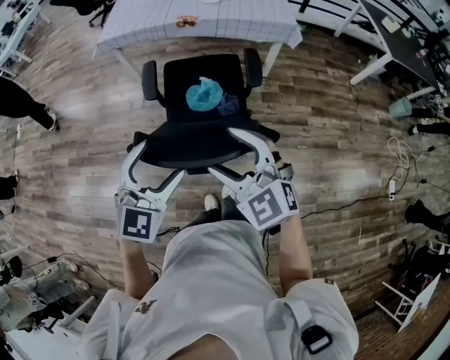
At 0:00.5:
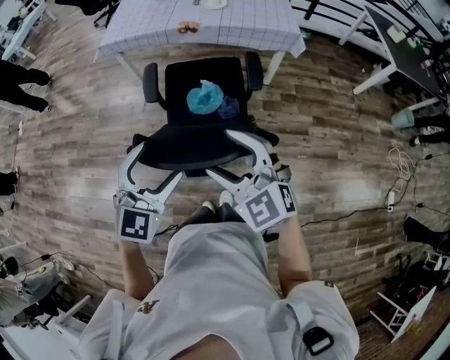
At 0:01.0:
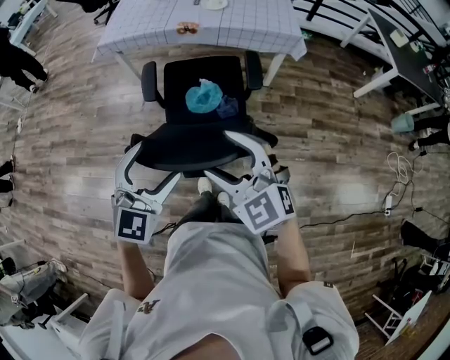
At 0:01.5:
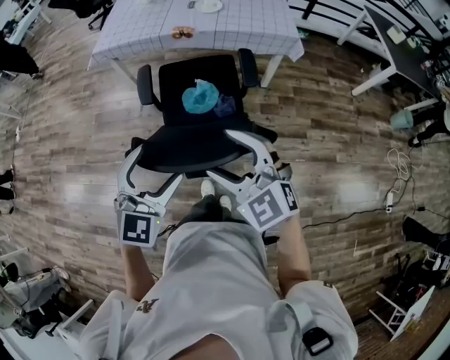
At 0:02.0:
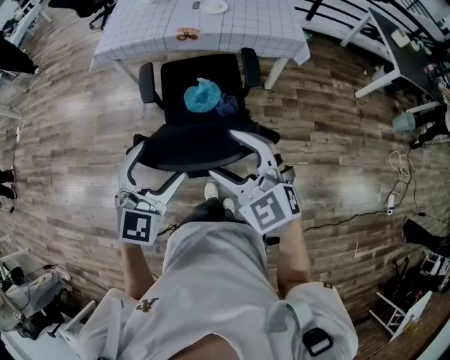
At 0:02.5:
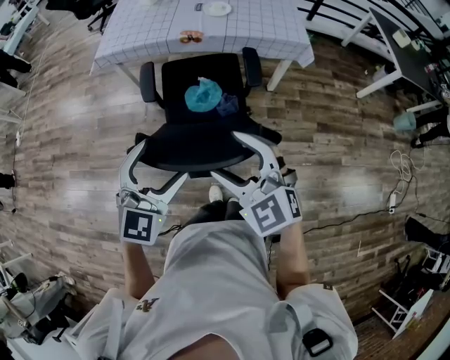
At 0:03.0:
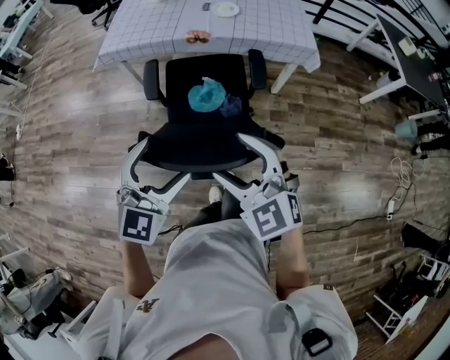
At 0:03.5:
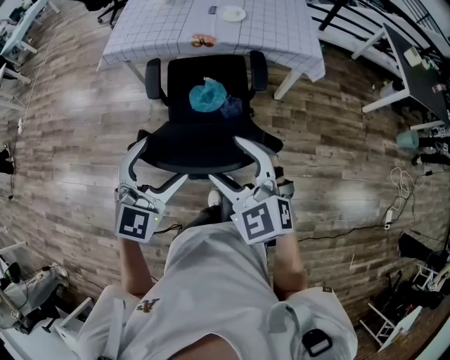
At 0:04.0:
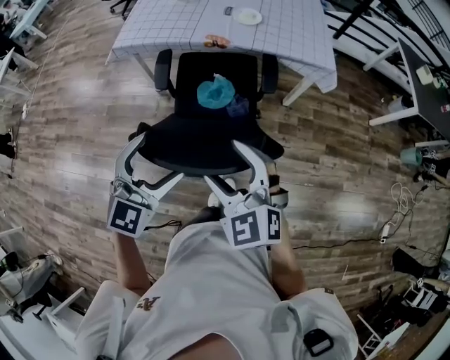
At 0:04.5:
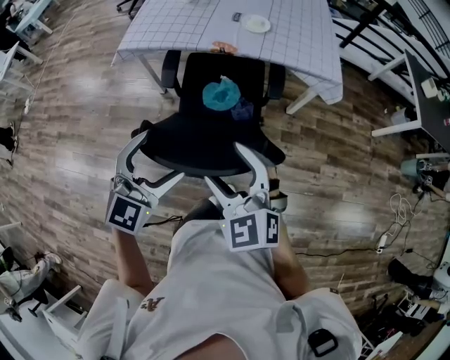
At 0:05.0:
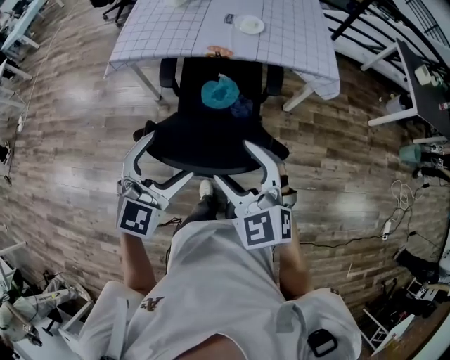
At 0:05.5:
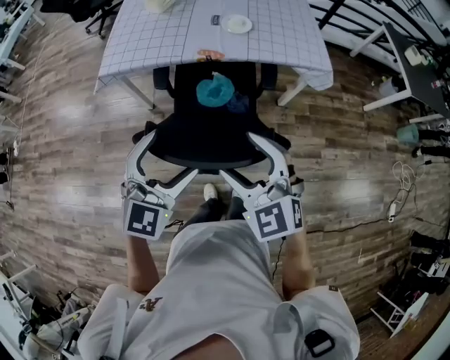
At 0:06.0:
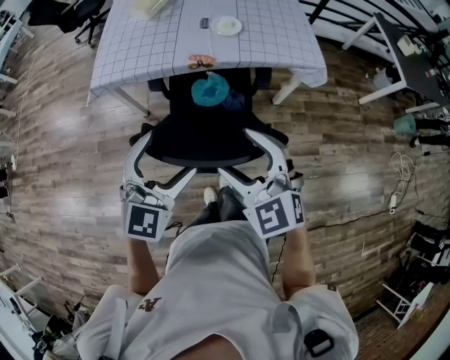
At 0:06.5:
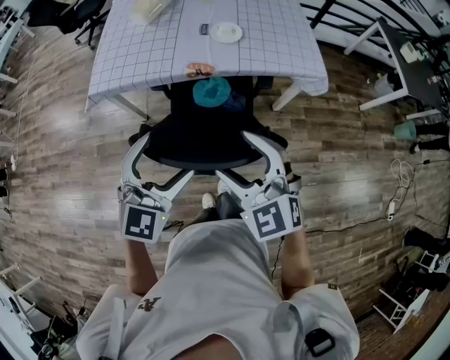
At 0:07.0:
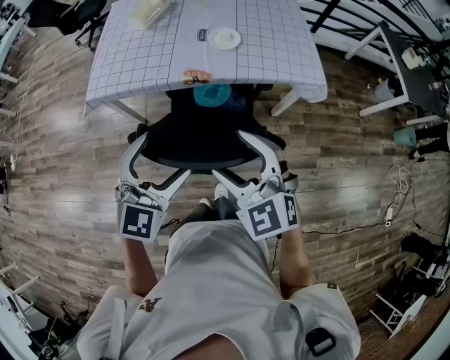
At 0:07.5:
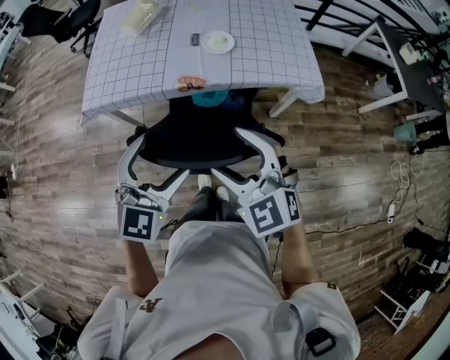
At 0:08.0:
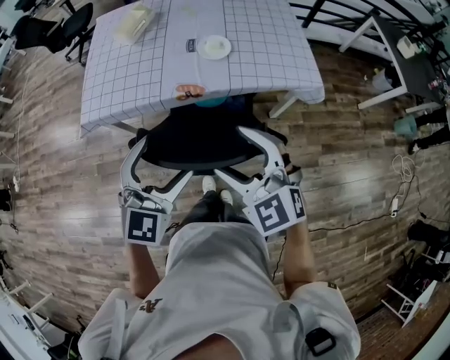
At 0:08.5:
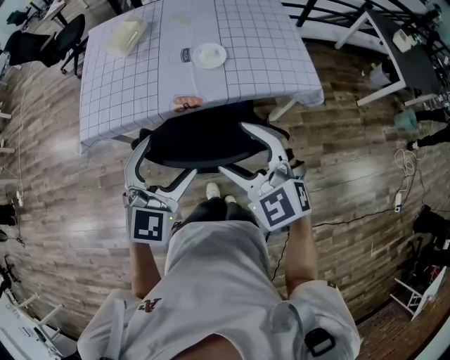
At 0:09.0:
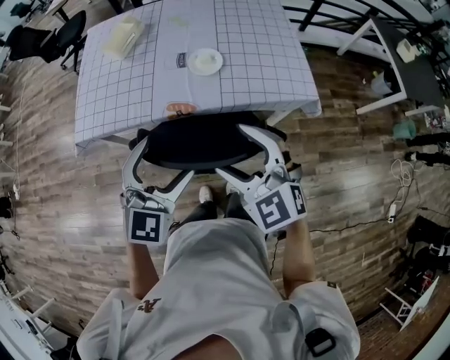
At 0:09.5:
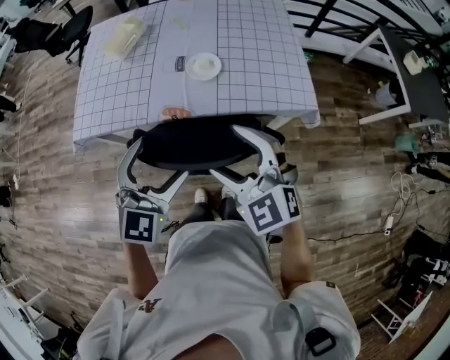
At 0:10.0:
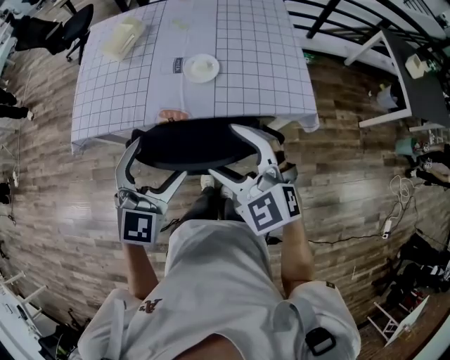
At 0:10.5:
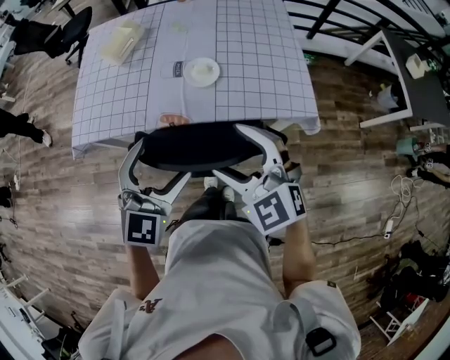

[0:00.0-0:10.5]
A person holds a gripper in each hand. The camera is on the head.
0:00.0 to 0:02.0: Both grippers move forward, approximately 10 cm.
0:02.0 to 0:04.0: The two grippers go some 10 cm forward and to the left.
0:04.0 to 0:06.5: Both grippers move forward, roughly 20 cm.
0:06.5 to 0:08.5: Both grippers travel together forward, roughly 15 cm.
0:08.5 to 0:10.5: The right gripper travels forward and to the right by some 10 cm, while the left gripper shifts some 10 cm to the right and forward.

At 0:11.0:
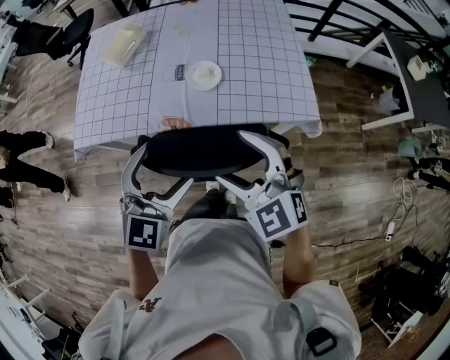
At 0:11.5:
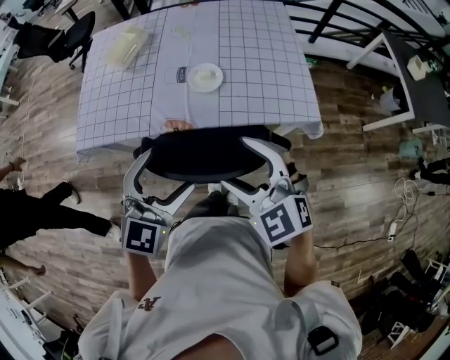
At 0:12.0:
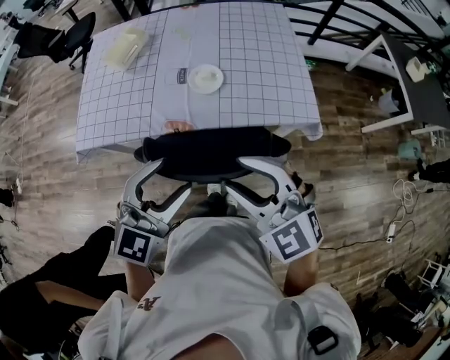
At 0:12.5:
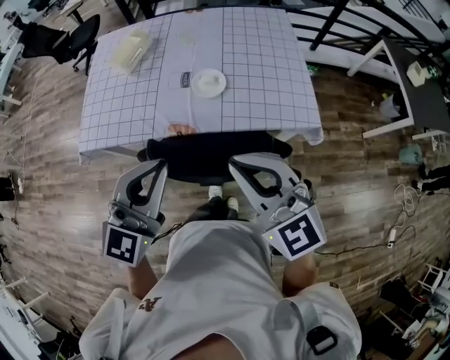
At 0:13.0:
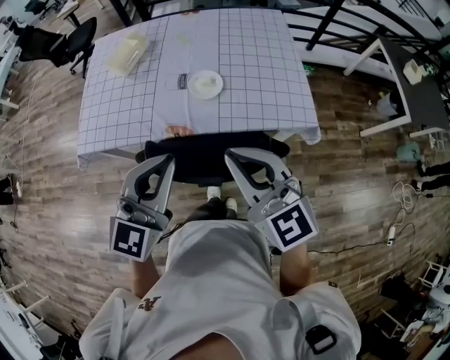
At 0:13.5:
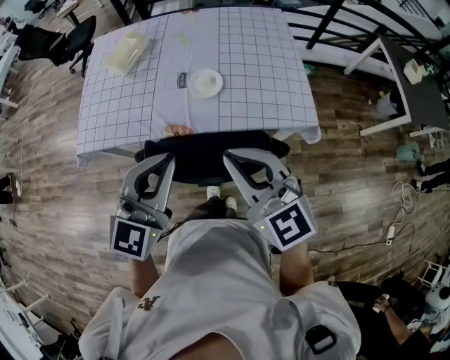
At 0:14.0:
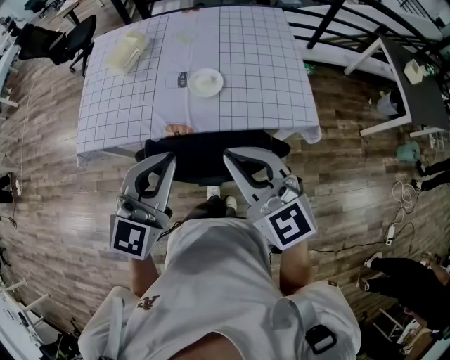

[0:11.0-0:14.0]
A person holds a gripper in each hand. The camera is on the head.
0:11.0 to 0:12.5: Both grippers travel together upward, some 10 cm. The right gripper closes up; the left gripper closes up.
0:12.5 to 0:14.0: There are only small adjustments of the grippers.

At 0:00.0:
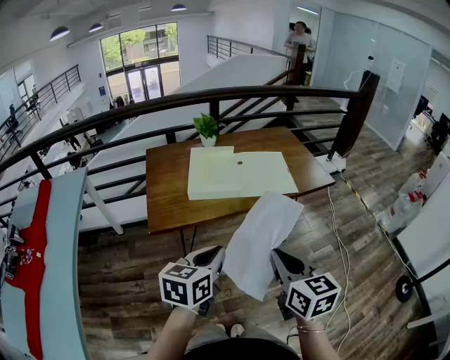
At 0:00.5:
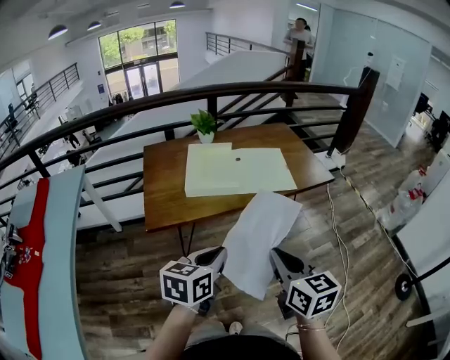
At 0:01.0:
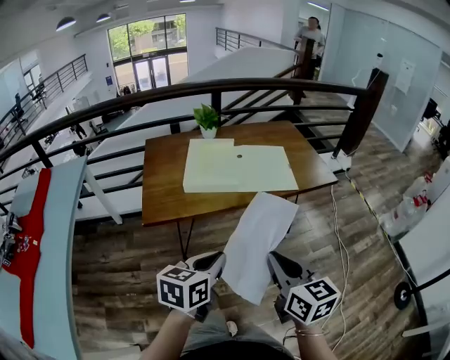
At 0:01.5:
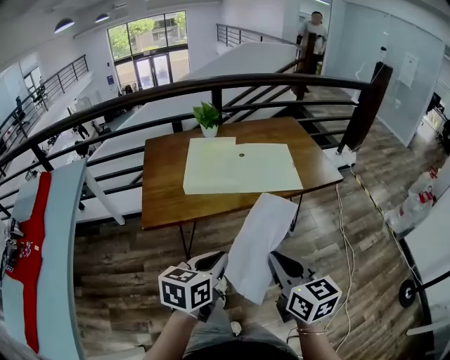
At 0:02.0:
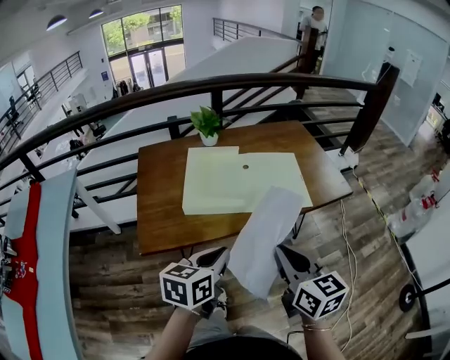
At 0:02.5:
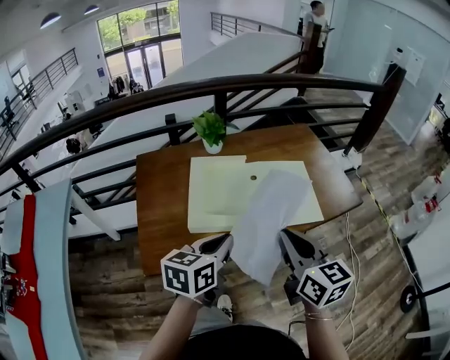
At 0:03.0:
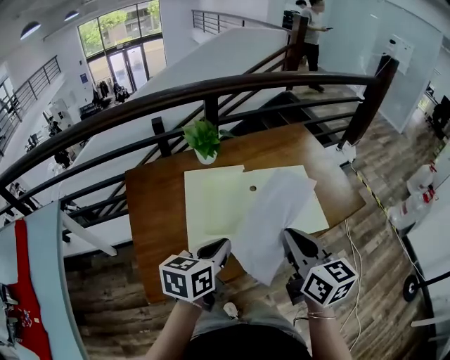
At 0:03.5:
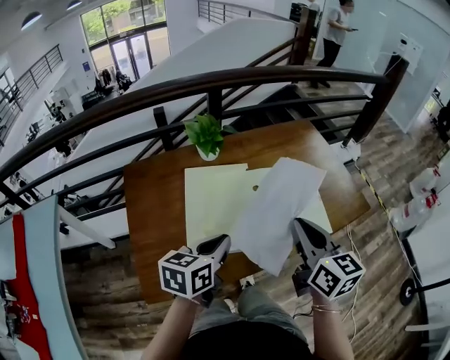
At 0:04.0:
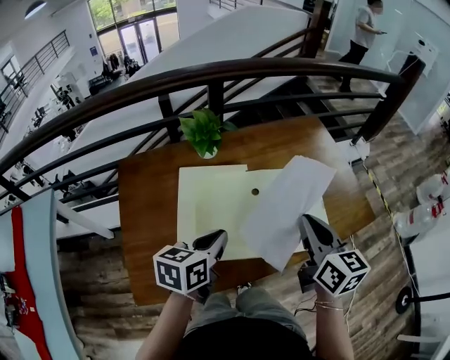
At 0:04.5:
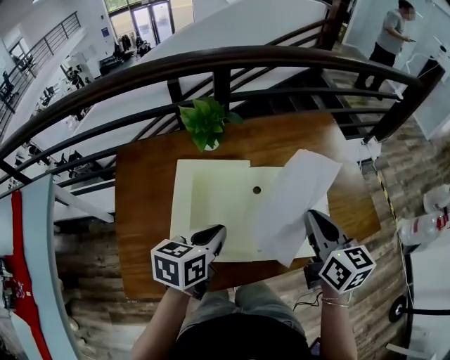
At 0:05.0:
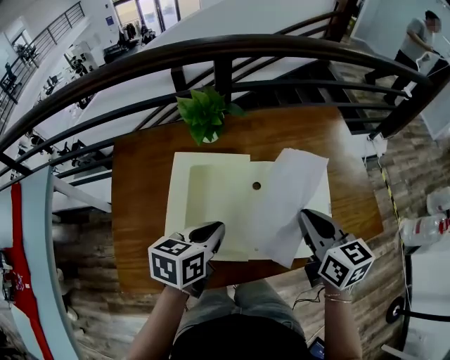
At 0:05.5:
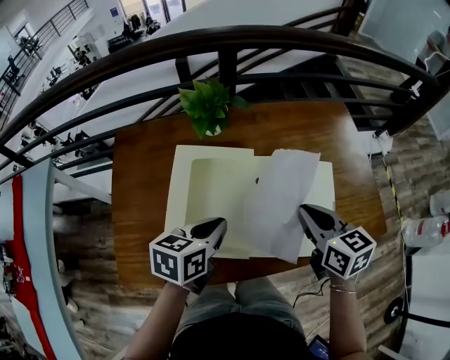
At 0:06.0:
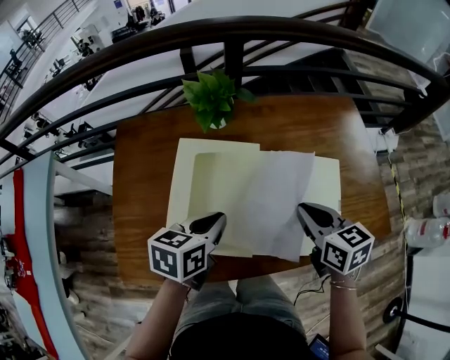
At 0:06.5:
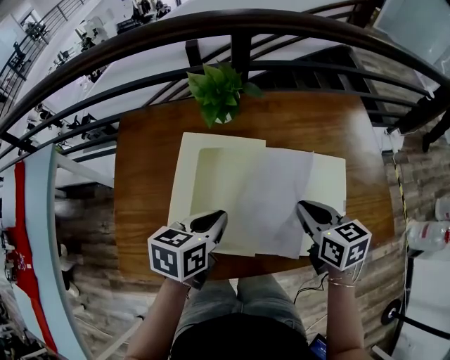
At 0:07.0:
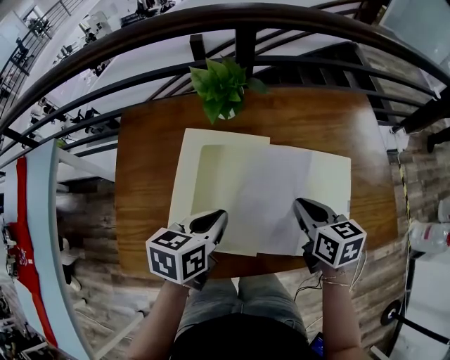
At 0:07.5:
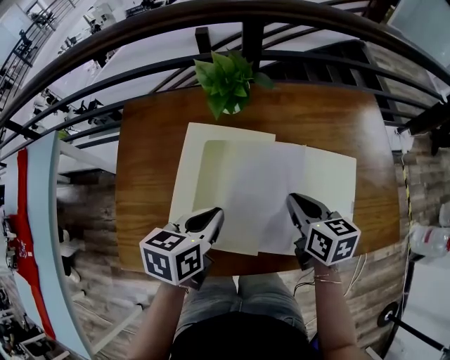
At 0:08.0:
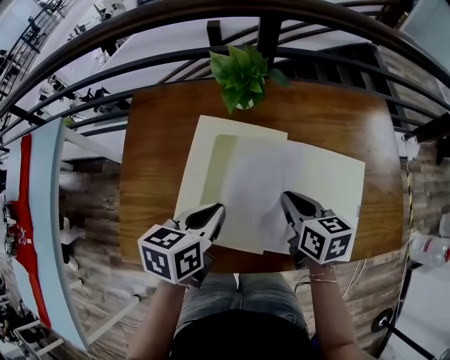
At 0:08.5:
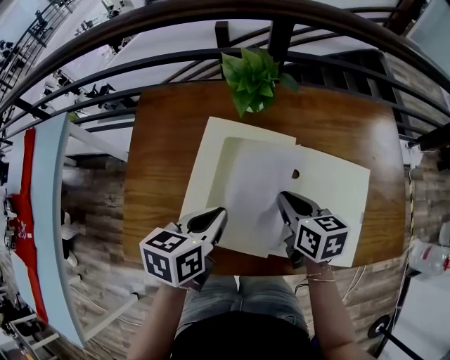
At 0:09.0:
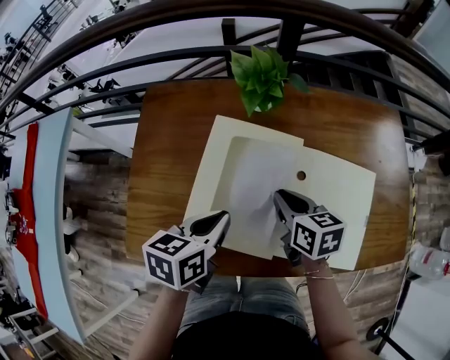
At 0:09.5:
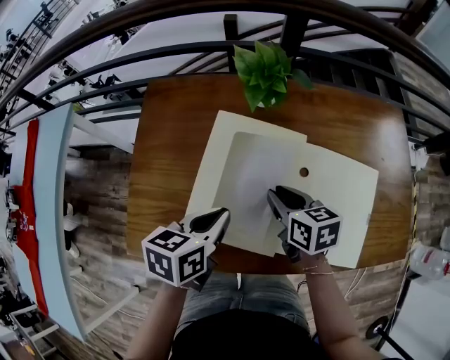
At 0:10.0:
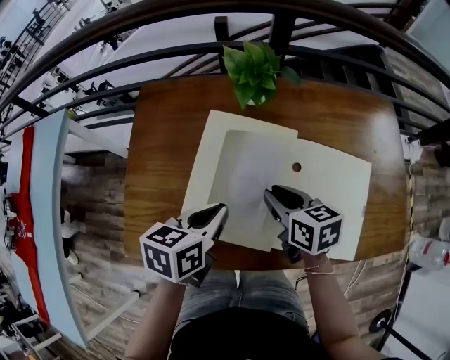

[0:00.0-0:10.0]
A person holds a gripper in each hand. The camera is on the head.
0:00.0 to 0:02.0: Both grippers move forward, approximately 15 cm.
0:02.0 to 0:04.0: Both grippers travel together forward, some 30 cm.
0:04.0 to 0:06.0: The right gripper is displaced downward and forward by roughly 10 cm, and rotates roughly 30 degrees. The left gripper moves roughly 5 cm.
0:06.0 to 0:08.0: The right gripper travels to the left and downward by roughly 10 cm.
0:08.0 to 0:10.0: The right gripper moves to the left, approximately 5 cm.

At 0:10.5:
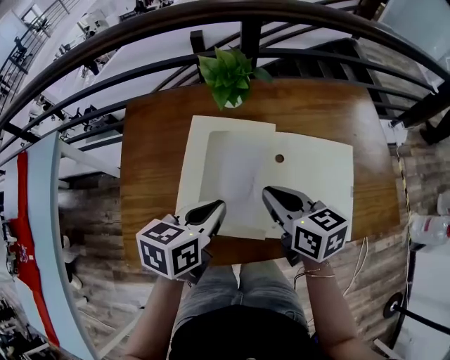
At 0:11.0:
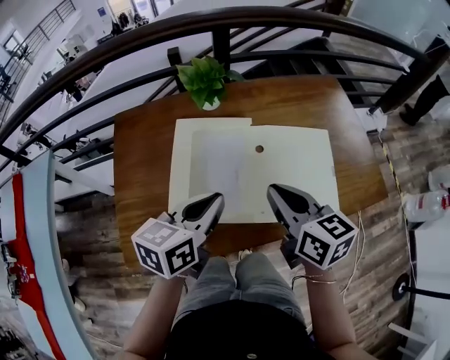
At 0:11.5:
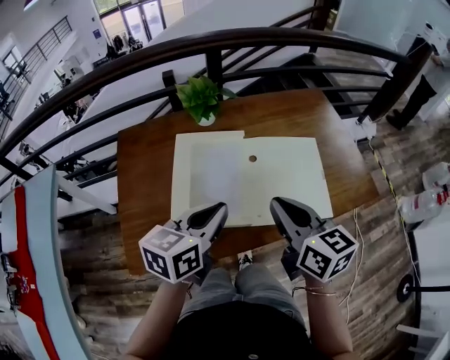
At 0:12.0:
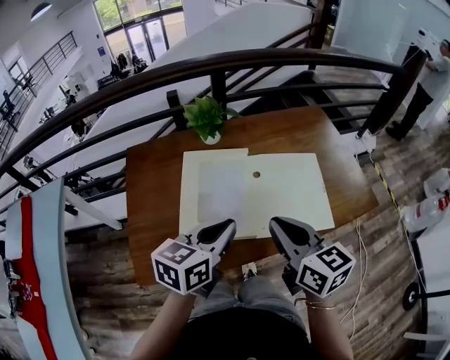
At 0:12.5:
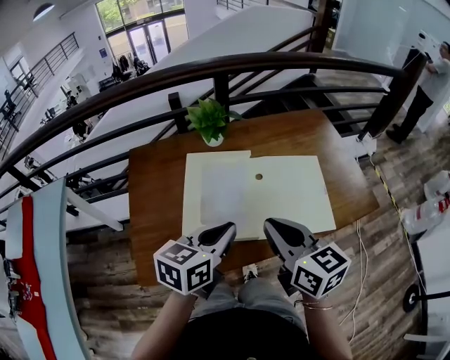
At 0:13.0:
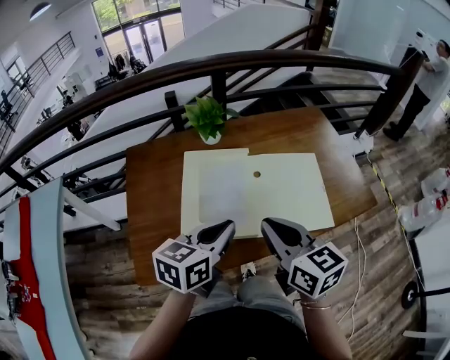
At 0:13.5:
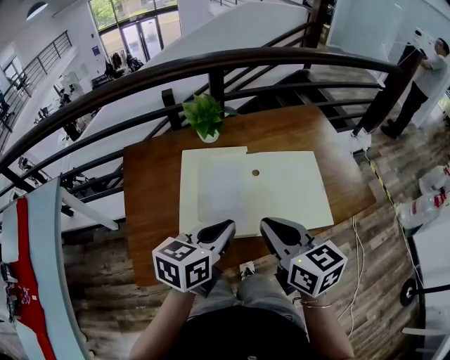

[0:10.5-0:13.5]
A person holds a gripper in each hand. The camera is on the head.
0:10.5 to 0:12.0: The right gripper travels backward and upward by some 15 cm, and turns by some 20 degrees. The left gripper travels upward and backward by approximately 10 cm.
0:12.0 to 0:13.5: The grippers make only small movements.
